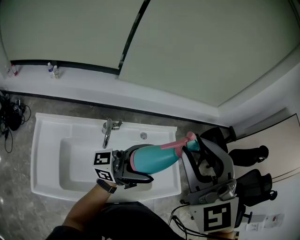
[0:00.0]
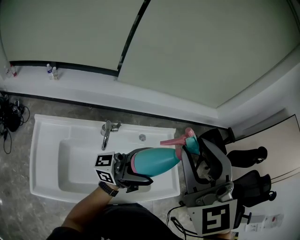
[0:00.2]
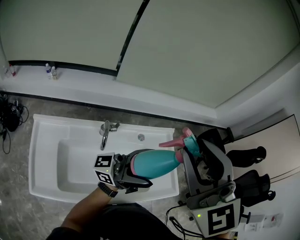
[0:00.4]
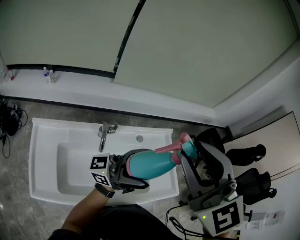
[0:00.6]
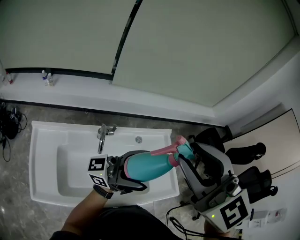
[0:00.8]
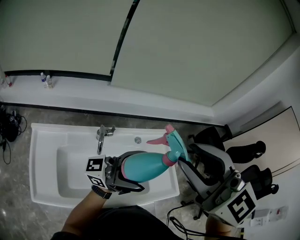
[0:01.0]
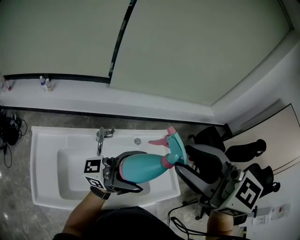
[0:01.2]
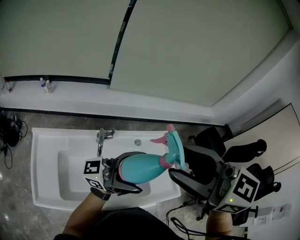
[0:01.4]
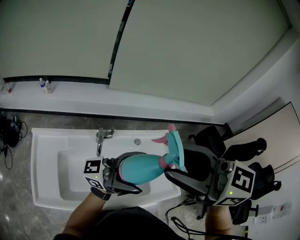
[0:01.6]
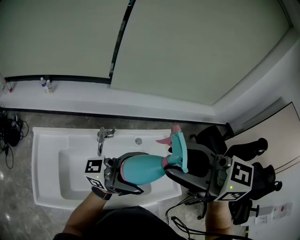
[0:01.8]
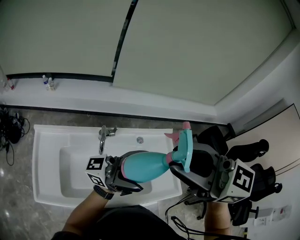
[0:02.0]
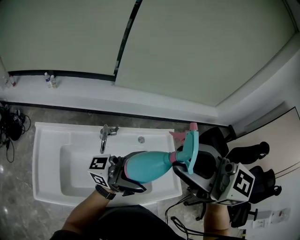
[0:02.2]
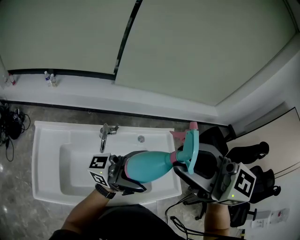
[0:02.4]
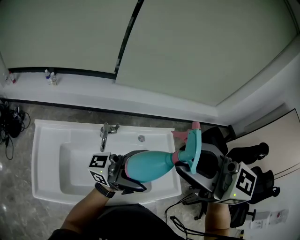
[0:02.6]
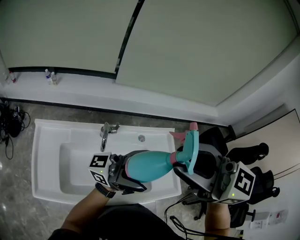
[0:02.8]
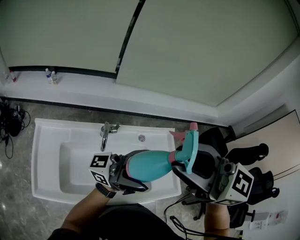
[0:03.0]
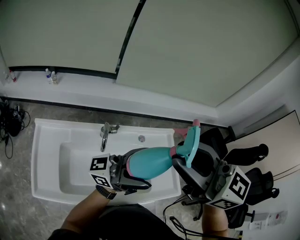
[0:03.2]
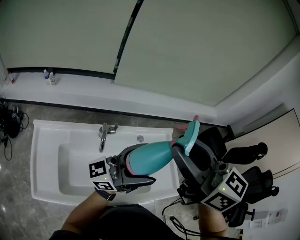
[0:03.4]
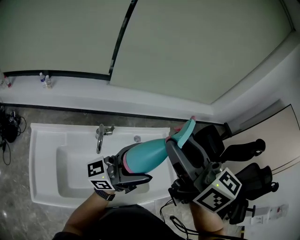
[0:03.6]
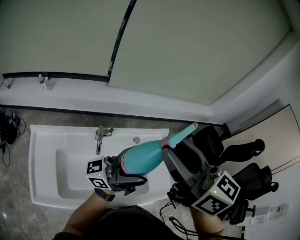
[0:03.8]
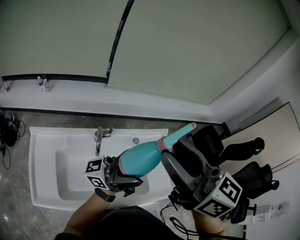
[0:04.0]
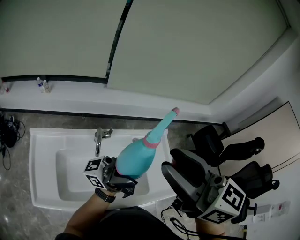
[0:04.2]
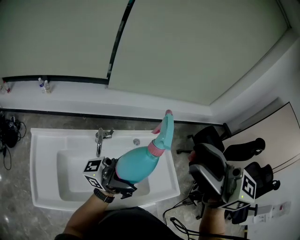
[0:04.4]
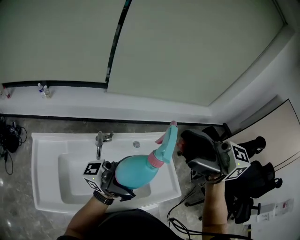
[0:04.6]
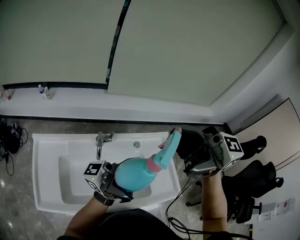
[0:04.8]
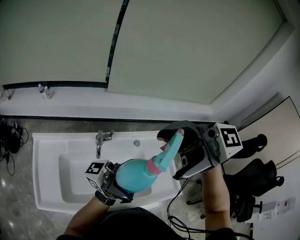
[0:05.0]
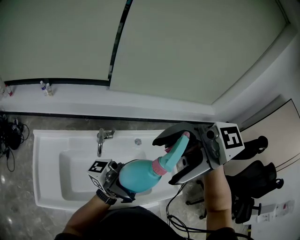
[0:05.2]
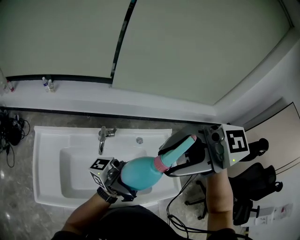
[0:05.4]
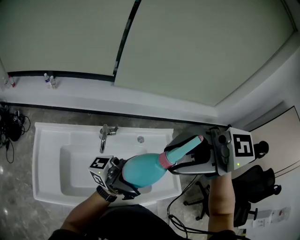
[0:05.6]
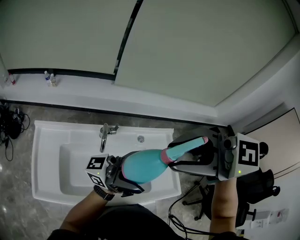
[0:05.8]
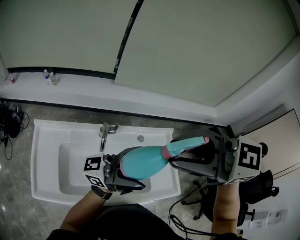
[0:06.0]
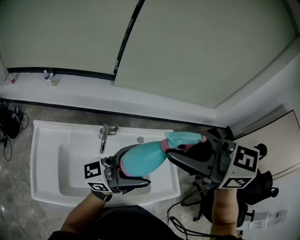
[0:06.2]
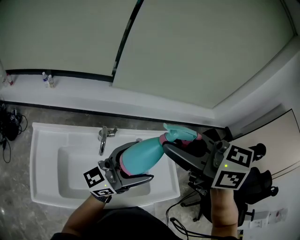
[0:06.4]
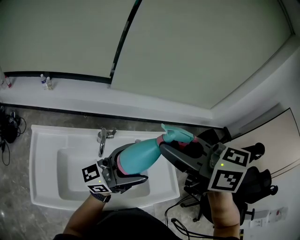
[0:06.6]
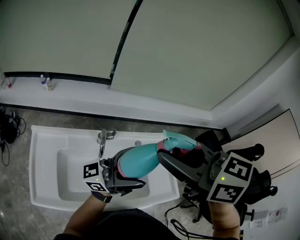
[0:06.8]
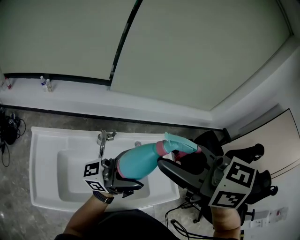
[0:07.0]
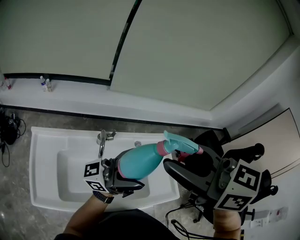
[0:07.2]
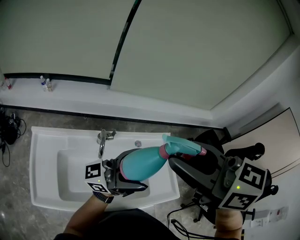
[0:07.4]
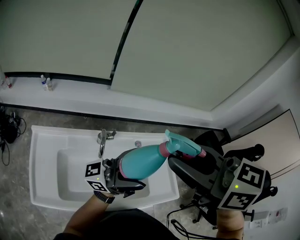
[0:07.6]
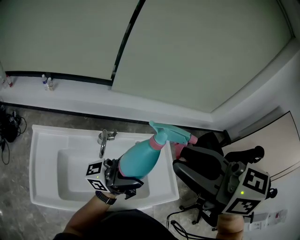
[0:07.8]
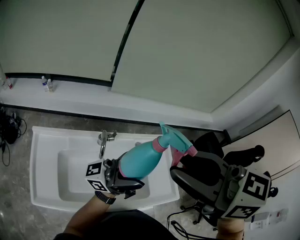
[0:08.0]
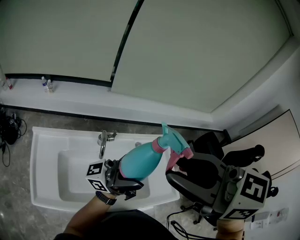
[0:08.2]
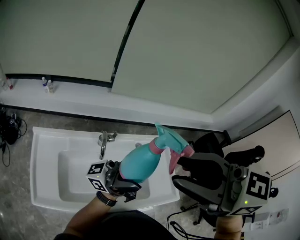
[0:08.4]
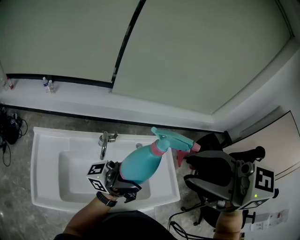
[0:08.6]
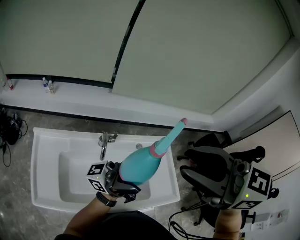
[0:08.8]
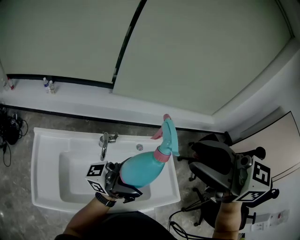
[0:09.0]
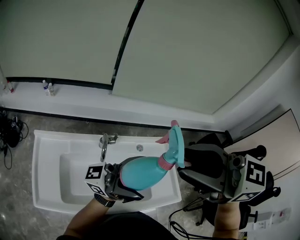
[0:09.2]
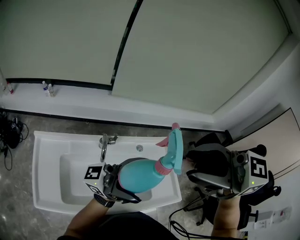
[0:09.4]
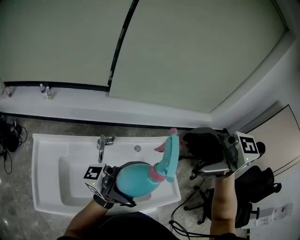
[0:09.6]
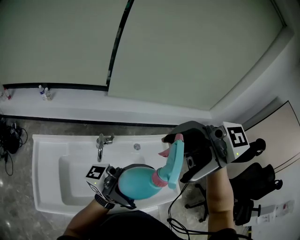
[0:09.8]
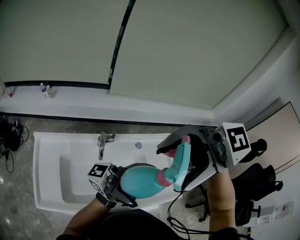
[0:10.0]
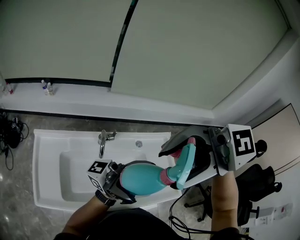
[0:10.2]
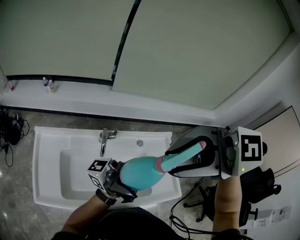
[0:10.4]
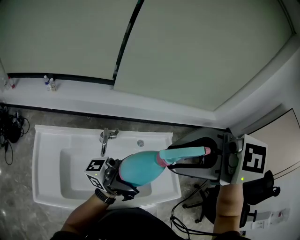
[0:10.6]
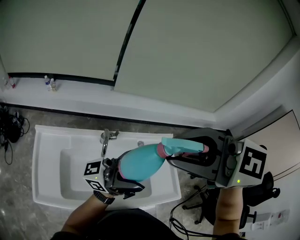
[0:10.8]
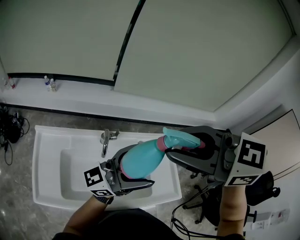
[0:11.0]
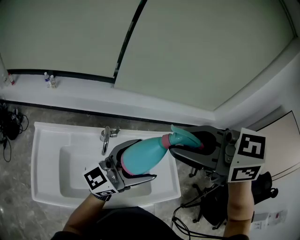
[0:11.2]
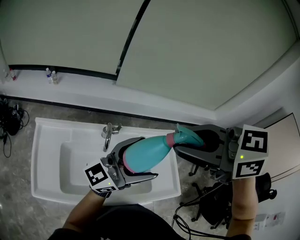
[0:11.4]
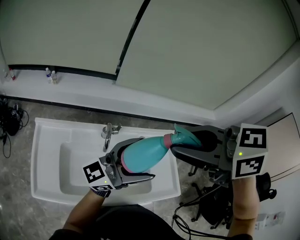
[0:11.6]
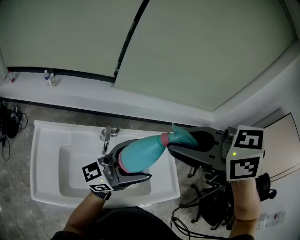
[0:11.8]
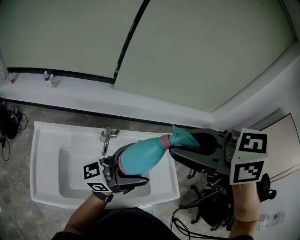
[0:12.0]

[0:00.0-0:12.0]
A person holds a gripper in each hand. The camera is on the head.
0:00.0 to 0:01.6: The right gripper turns by approximately 60 degrees.
0:01.6 to 0:03.0: The grippers stay close to where they were, moving slightly.
0:03.0 to 0:04.4: The right gripper moves some 5 cm.
0:04.4 to 0:06.0: The right gripper changes place by approximately 5 cm, turns by some 40 degrees, and opens, then closes again.
0:06.0 to 0:07.6: The right gripper rotates some 40 degrees.
0:09.0 to 0:10.4: The right gripper moves approximately 5 cm, rotates about 40 degrees, and opens, then closes once more.
0:10.4 to 0:12.0: The right gripper shifts by roughly 5 cm, and turns by some 50 degrees, while the left gripper shifts by some 5 cm, and swivels about 30 degrees.

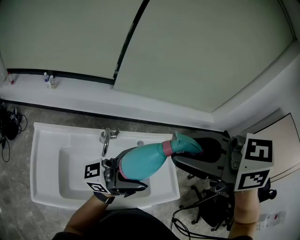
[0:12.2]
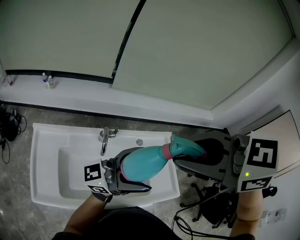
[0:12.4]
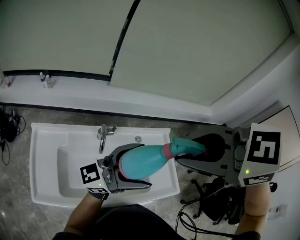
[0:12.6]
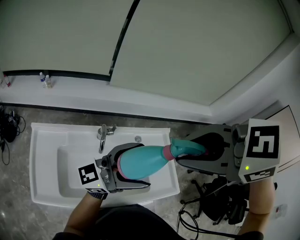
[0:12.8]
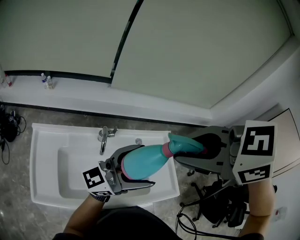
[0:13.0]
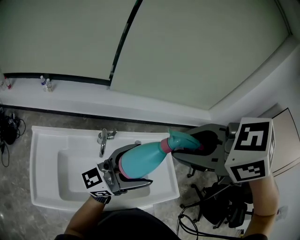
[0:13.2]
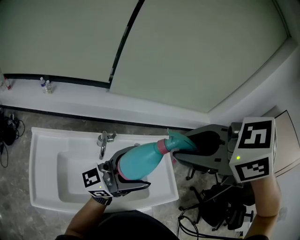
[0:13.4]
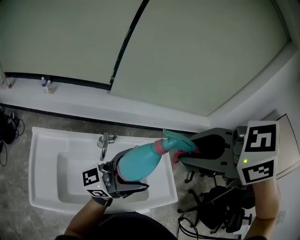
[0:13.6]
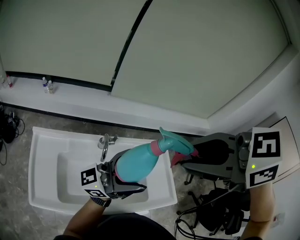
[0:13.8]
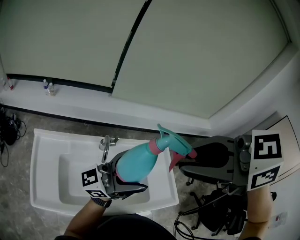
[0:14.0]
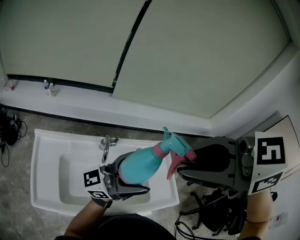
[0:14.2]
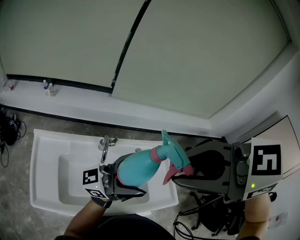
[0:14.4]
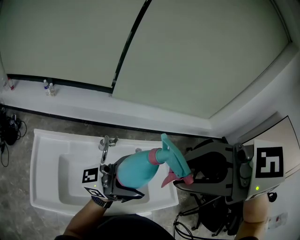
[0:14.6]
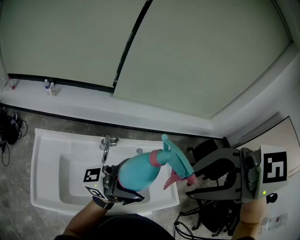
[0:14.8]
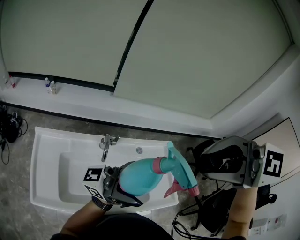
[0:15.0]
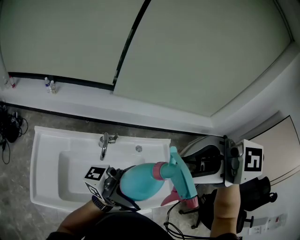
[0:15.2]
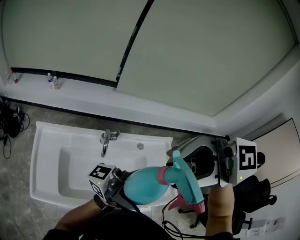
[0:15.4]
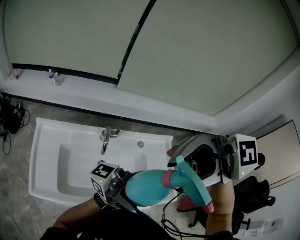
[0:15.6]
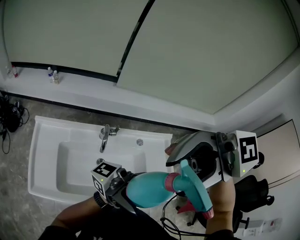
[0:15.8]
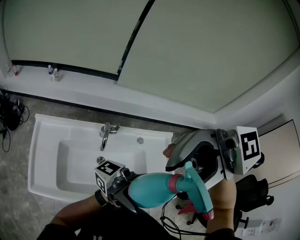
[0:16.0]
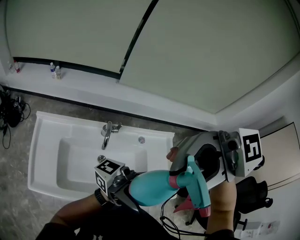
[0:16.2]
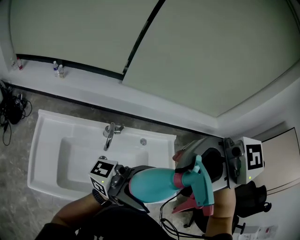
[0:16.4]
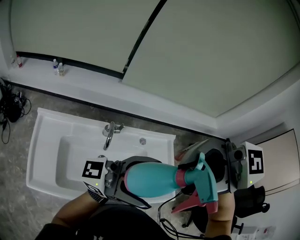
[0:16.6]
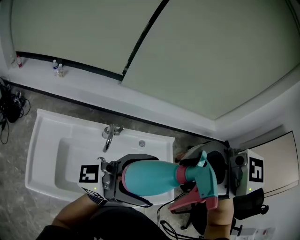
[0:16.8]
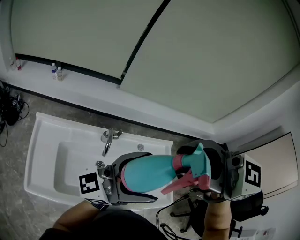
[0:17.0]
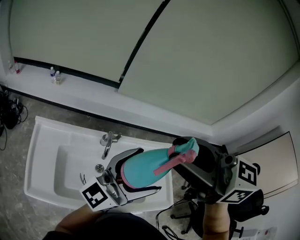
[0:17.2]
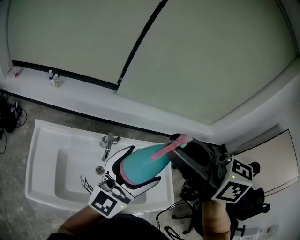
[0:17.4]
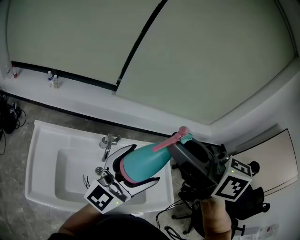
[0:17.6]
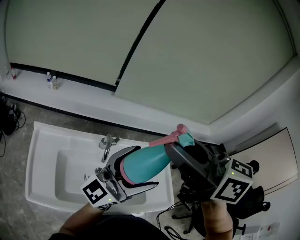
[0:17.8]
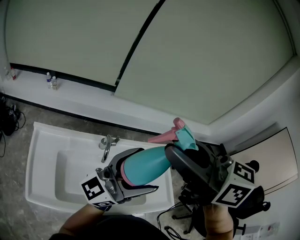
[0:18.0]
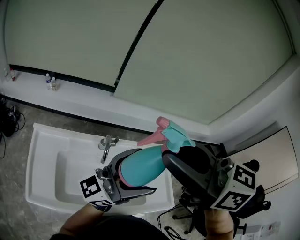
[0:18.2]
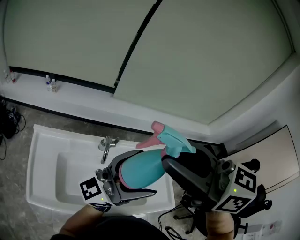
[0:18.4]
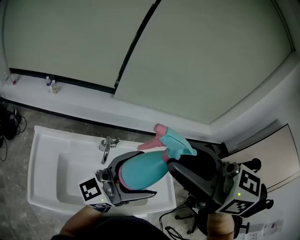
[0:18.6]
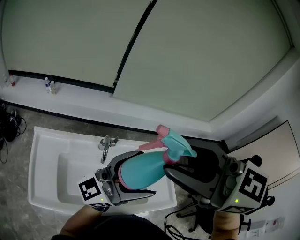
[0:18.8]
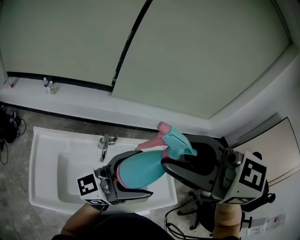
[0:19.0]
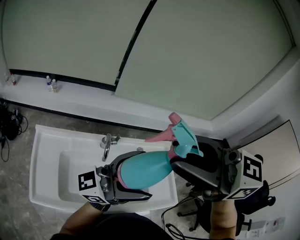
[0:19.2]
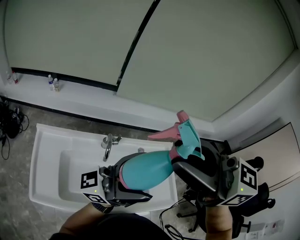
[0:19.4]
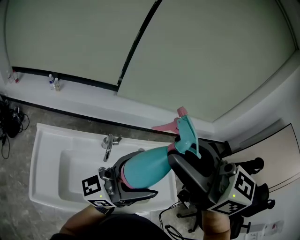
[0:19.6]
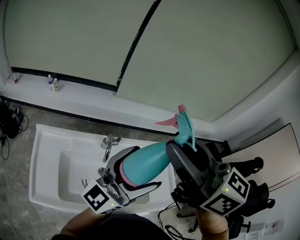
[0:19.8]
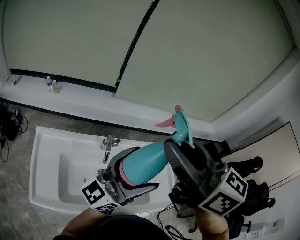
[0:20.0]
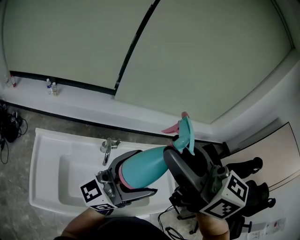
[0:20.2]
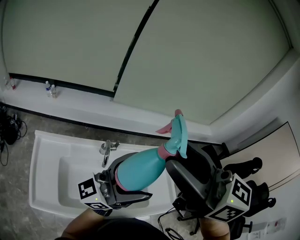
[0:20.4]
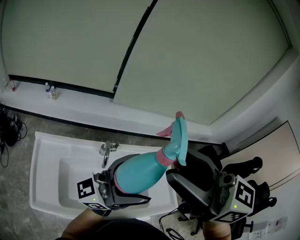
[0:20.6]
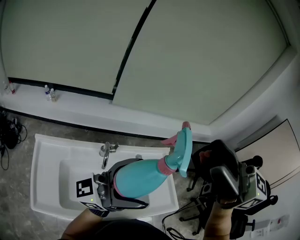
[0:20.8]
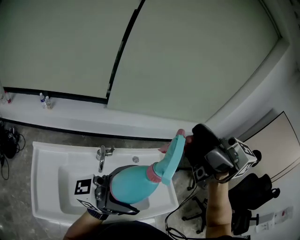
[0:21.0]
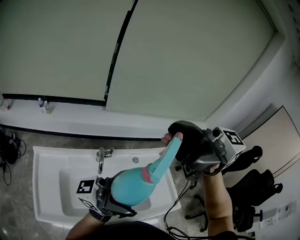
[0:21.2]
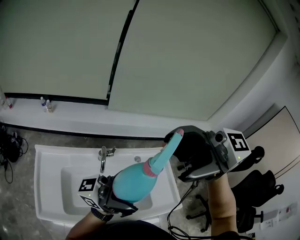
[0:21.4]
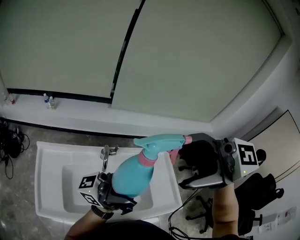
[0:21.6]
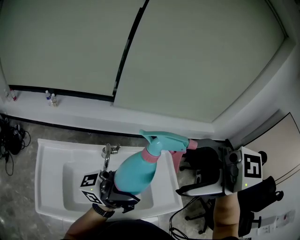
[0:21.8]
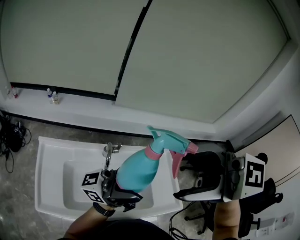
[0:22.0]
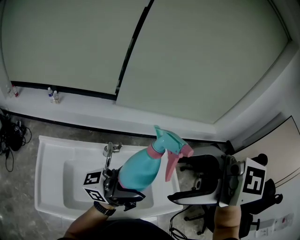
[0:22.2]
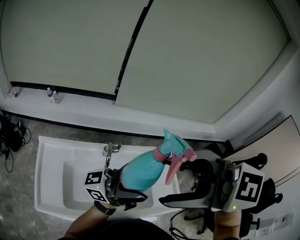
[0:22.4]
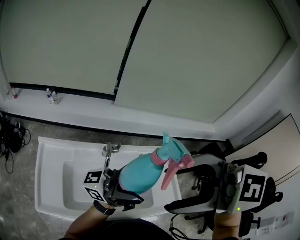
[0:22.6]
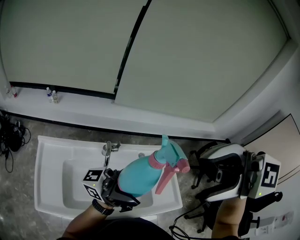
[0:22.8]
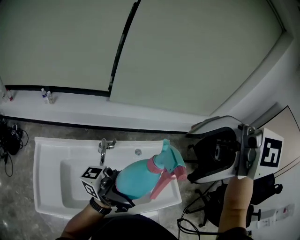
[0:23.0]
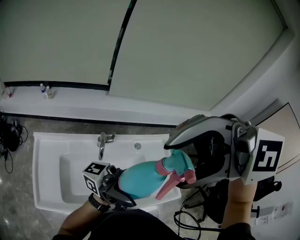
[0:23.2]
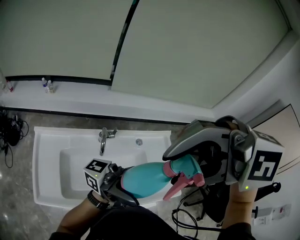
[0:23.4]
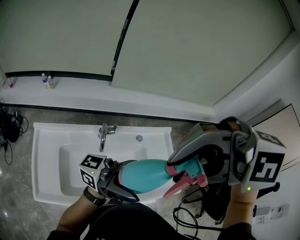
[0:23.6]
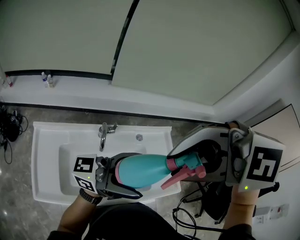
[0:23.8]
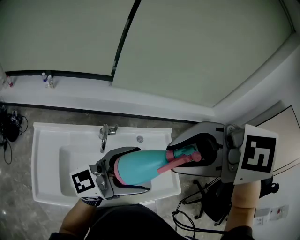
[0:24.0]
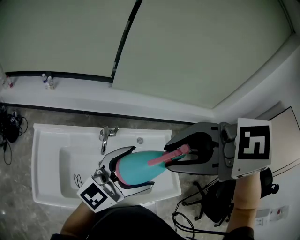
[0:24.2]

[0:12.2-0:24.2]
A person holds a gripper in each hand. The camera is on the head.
0:13.8 to 0:15.2: The left gripper ends up approximately 5 cm from where it was, and swivels roughly 30 degrees, while the right gripper angles its fingers upward, by about 30 degrees.
0:16.6 to 0:18.2: The right gripper ends up approximately 10 cm from where it was, and rotates roughly 50 degrees; the left gripper changes place by about 5 cm, and swivels about 30 degrees.
0:19.8 to 0:21.2: The left gripper ends up about 10 cm from where it was, and turns by some 50 degrees; the right gripper goes approximately 5 cm upward, swivels approximately 50 degrees, and opens up.
0:21.2 to 0:22.6: The right gripper changes place by approximately 10 cm, and tips its fingers downward by roughly 30 degrees.
0:22.6 to 0:24.2: The left gripper moves approximately 5 cm, and angles its fingers downward, by about 30 degrees, while the right gripper moves some 10 cm, swivels roughly 30 degrees, and closes.
